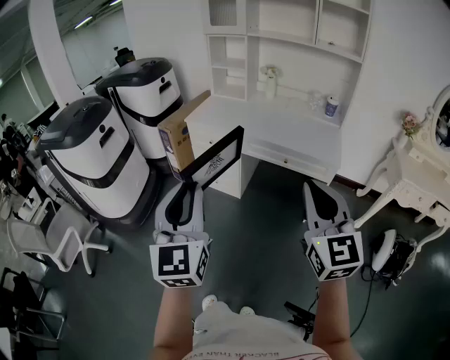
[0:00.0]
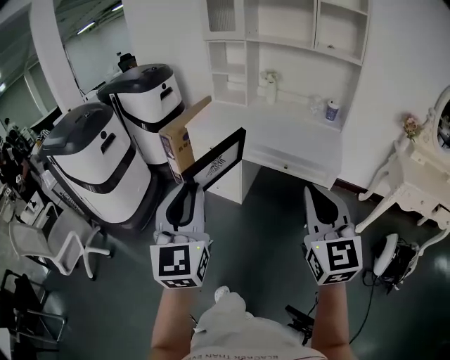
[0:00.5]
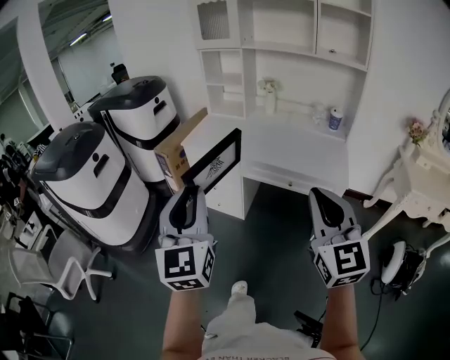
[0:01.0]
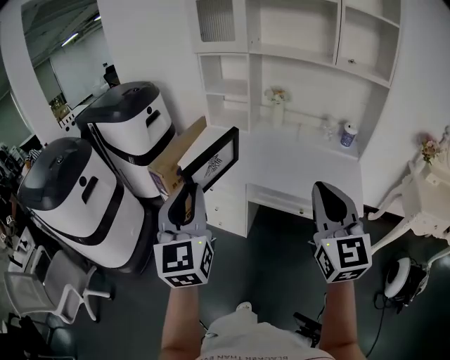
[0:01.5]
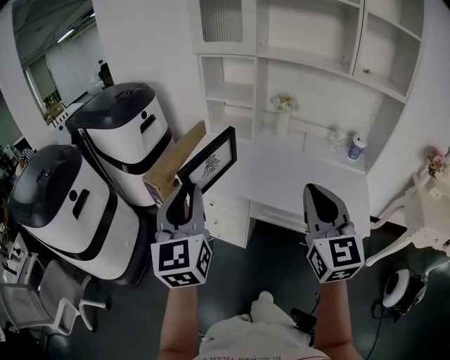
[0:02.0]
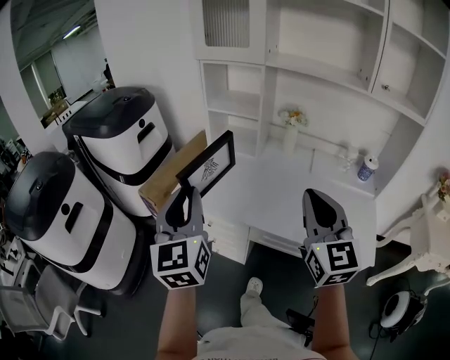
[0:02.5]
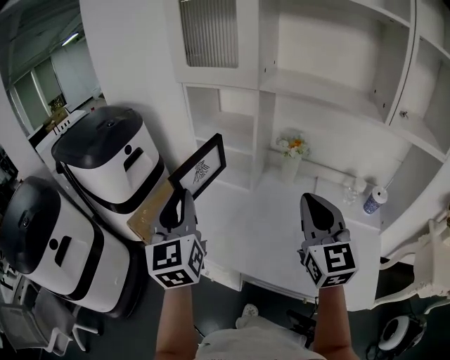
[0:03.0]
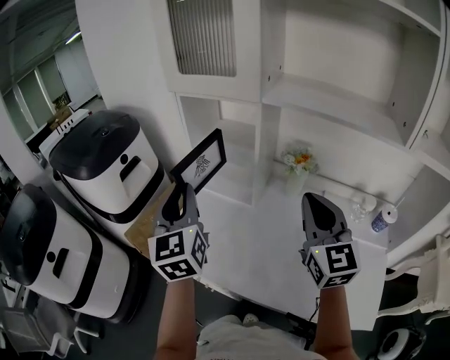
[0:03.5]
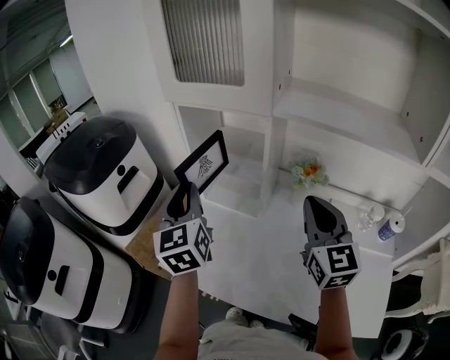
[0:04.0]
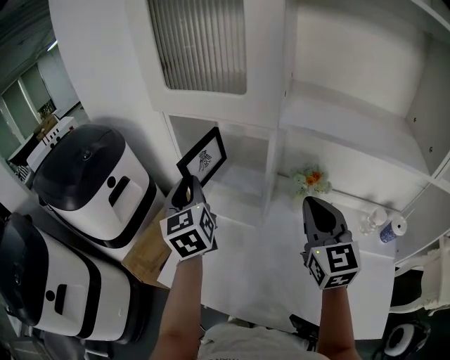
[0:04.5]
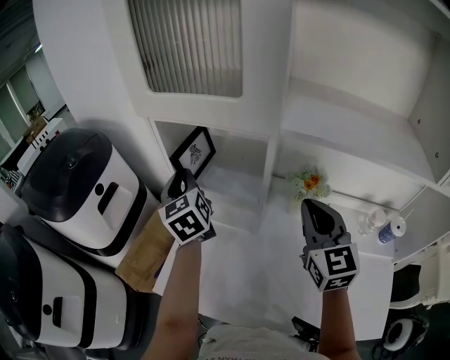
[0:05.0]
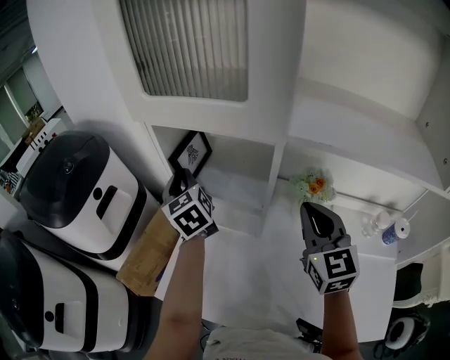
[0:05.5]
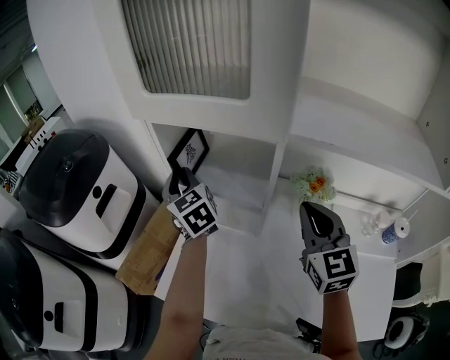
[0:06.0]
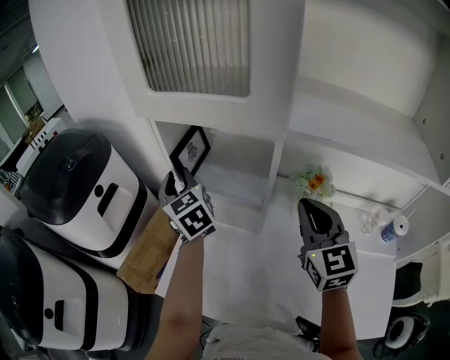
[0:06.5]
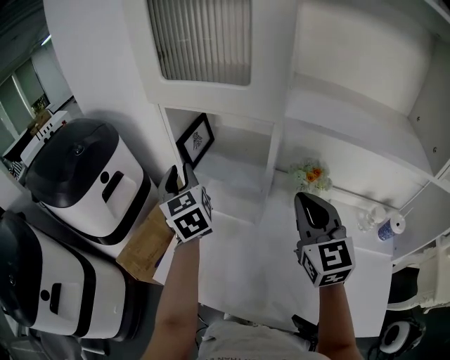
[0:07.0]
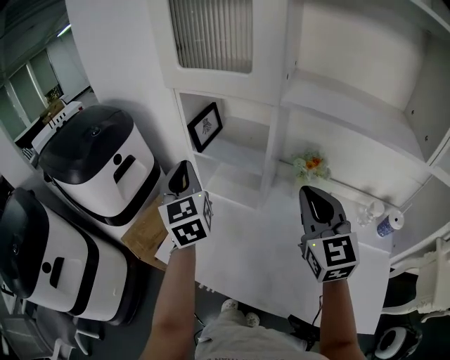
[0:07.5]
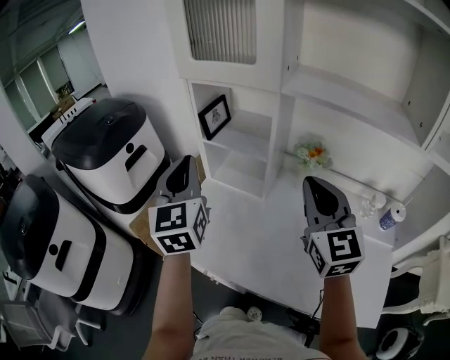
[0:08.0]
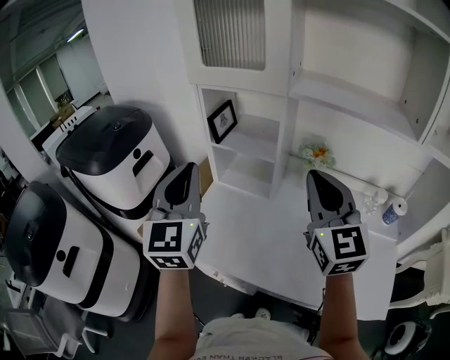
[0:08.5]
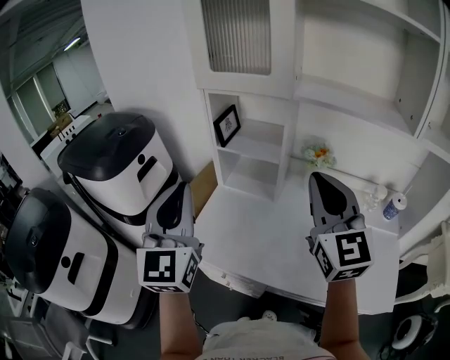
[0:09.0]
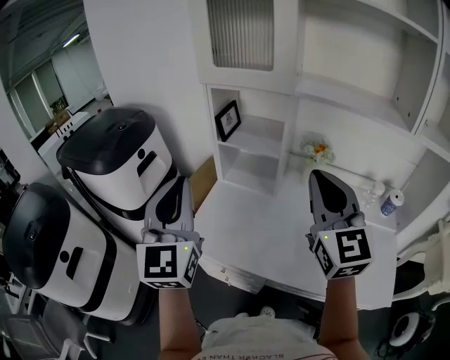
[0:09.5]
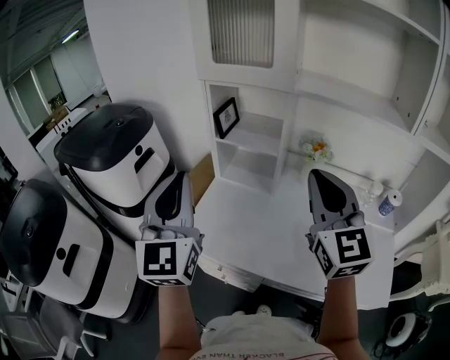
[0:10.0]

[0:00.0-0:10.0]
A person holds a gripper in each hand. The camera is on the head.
0:00.0 to 0:02.0: The pair of grippers is taken forward, approximately 40 cm.
0:02.0 to 0:04.0: The pair of grippers is taken forward, approximately 50 cm.
0:04.0 to 0:06.0: The left gripper is displaced forward by some 20 cm; the right gripper shifts approximately 10 cm forward.
0:06.0 to 0:08.0: The left gripper heads backward and upward, covering some 30 cm, and swivels approximately 20 degrees. Meanwhile the right gripper shifts roughly 15 cm backward and upward.
0:08.0 to 0:10.0: The left gripper is displaced backward and to the left by about 15 cm, while the right gripper is displaced backward, to the left and upward by approximately 10 cm.

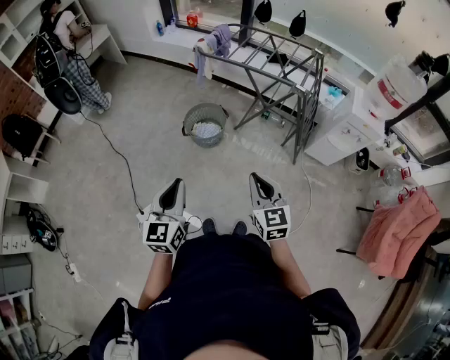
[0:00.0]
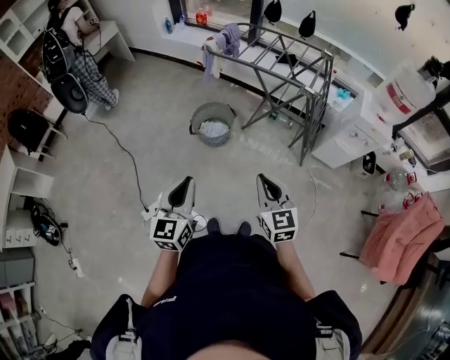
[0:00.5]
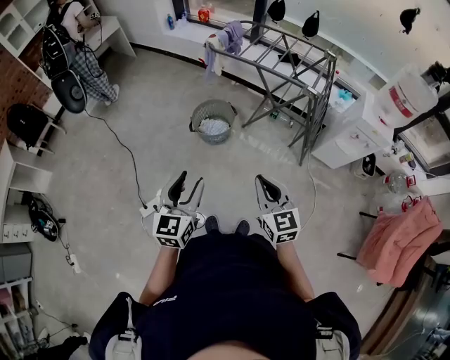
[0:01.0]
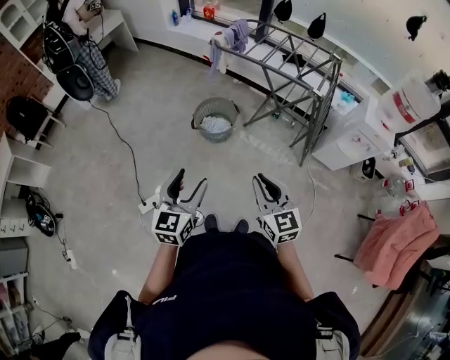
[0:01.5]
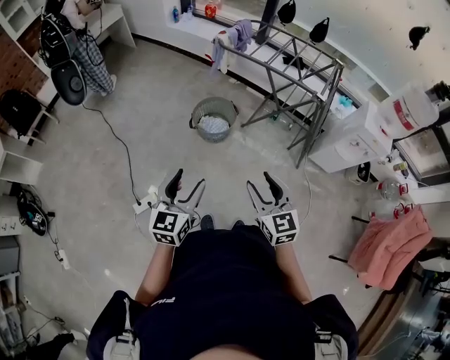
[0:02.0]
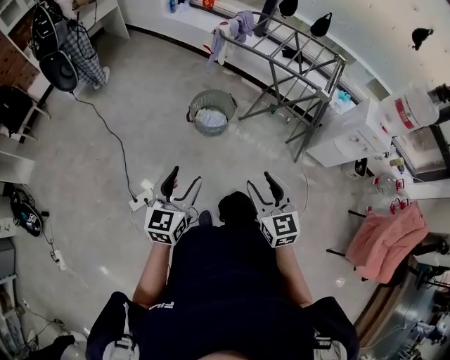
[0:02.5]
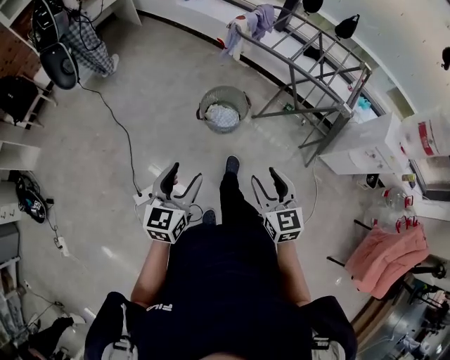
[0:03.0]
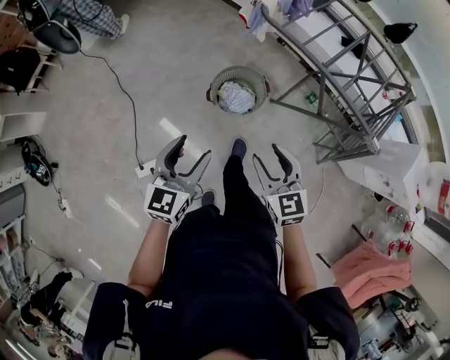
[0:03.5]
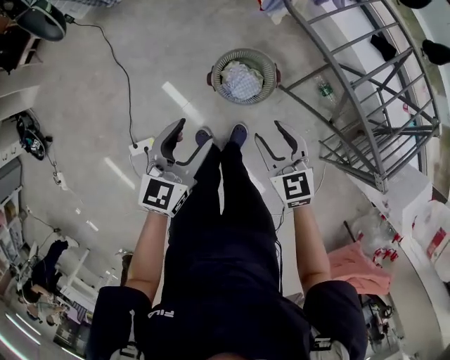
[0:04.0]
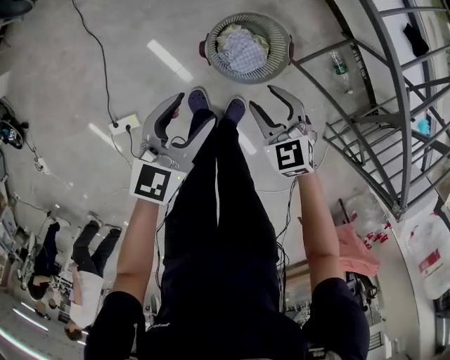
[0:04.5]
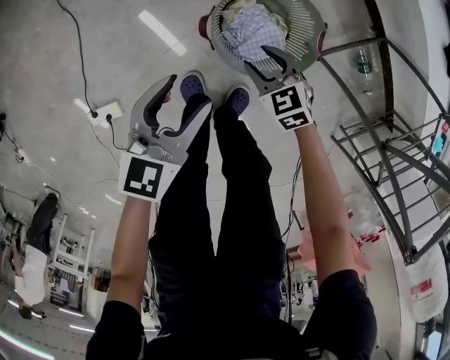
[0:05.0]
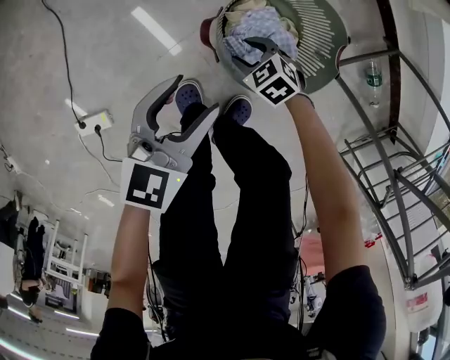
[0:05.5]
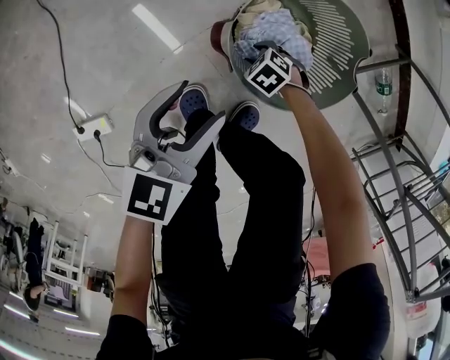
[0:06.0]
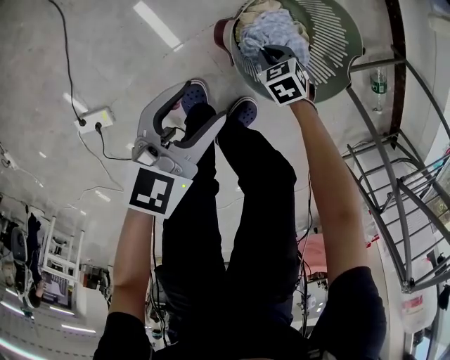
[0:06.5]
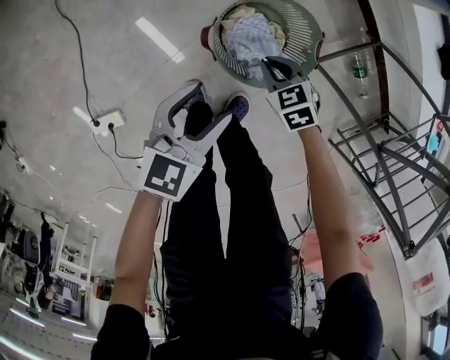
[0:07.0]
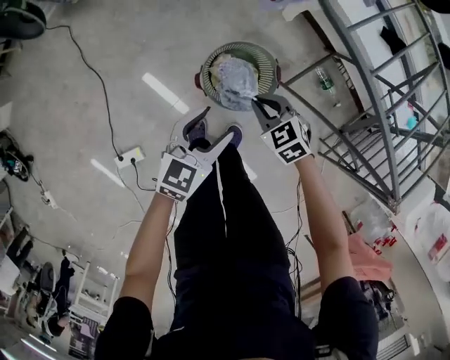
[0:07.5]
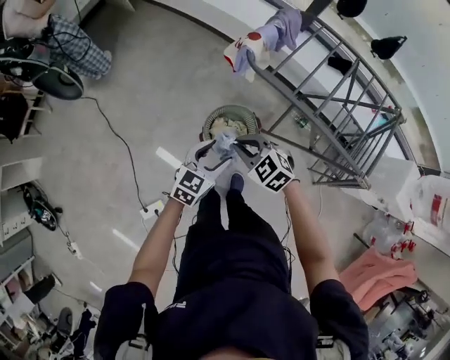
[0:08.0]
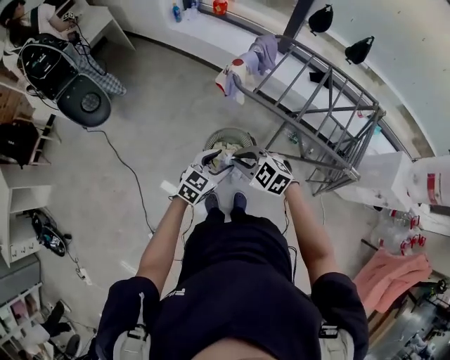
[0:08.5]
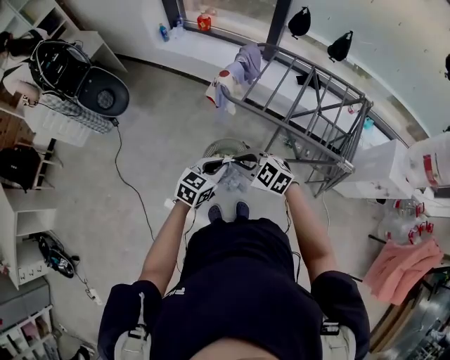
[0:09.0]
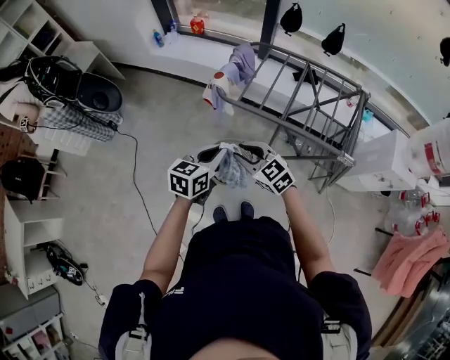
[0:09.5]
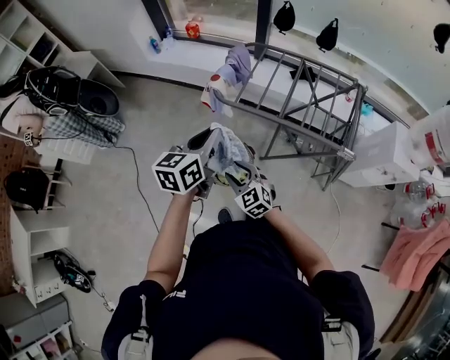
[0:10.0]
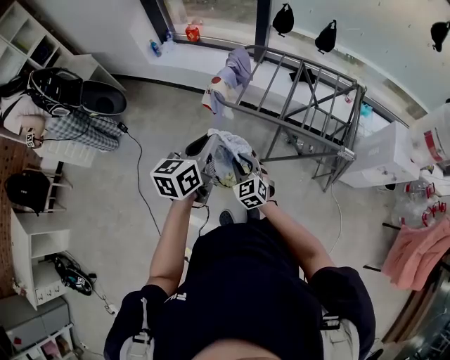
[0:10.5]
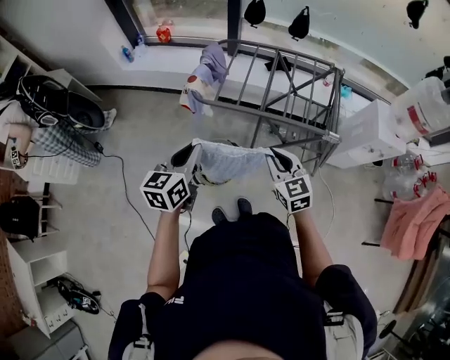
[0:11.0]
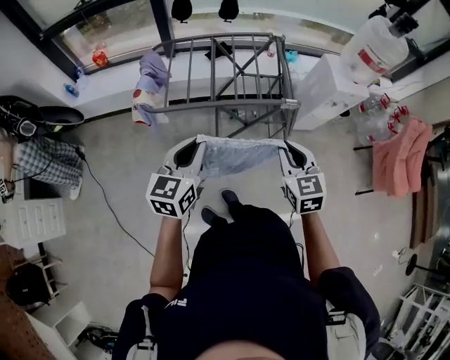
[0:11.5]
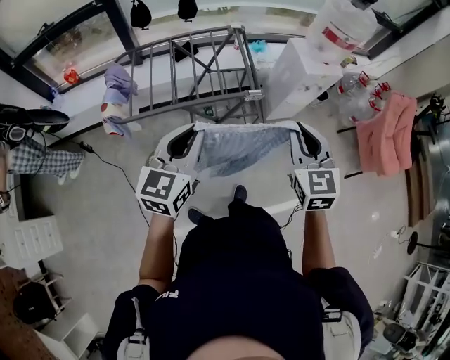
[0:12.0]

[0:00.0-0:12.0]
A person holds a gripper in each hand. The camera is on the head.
0:00.0 to 0:02.0: The left gripper changes place by about 5 cm, and opens its fingers; the right gripper travels to the left by about 5 cm, and opens up.
0:02.0 to 0:04.0: The pair of grippers is taken forward, roughly 50 cm. The right gripper is displaced downward by about 20 cm, and rotates roughly 30 degrees.
0:04.0 to 0:06.0: The grippers both shift downward by about 60 cm. The right gripper points its fingers roughly 40 degrees further downward.
0:06.0 to 0:08.0: The left gripper heads upward, covering approximately 50 cm, and swivels some 20 degrees; the right gripper goes about 80 cm upward, points its fingers some 30 degrees further upward, and closes its fingers.
0:08.0 to 0:10.0: The left gripper heads upward, covering some 25 cm, and closes up. Meanwhile the right gripper shifts approximately 5 cm backward, swivels some 30 degrees, and opens its fingers.
0:10.0 to 0:12.0: The left gripper changes place by about 25 cm, and swivels about 40 degrees. The right gripper shifts by some 50 cm, turns by some 60 degrees, and closes.

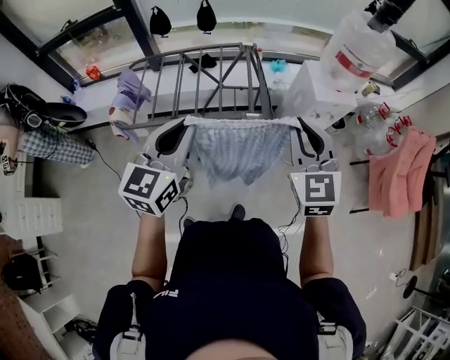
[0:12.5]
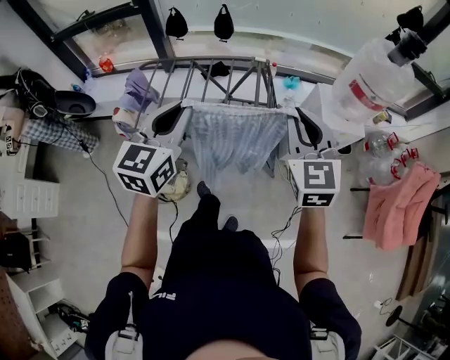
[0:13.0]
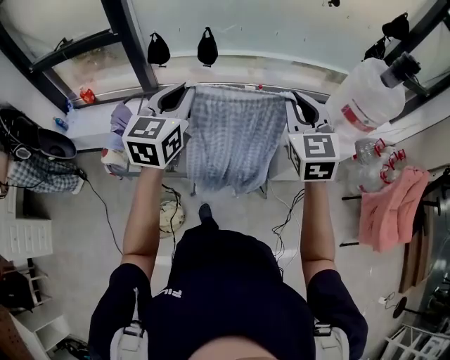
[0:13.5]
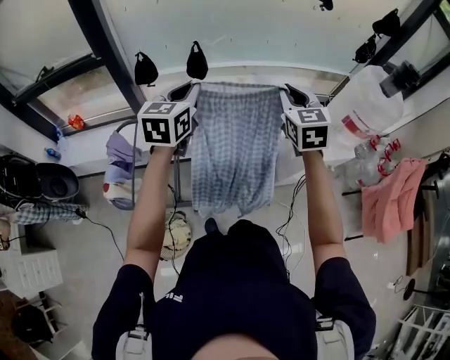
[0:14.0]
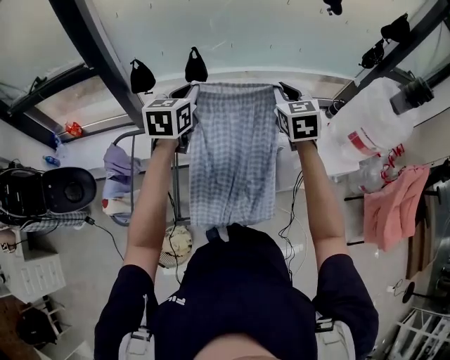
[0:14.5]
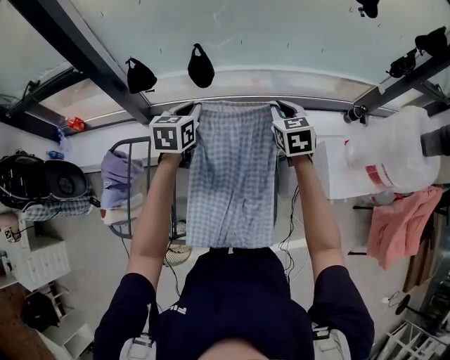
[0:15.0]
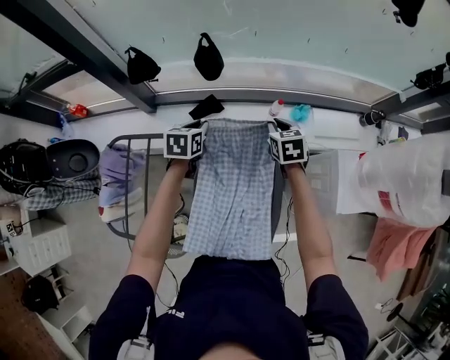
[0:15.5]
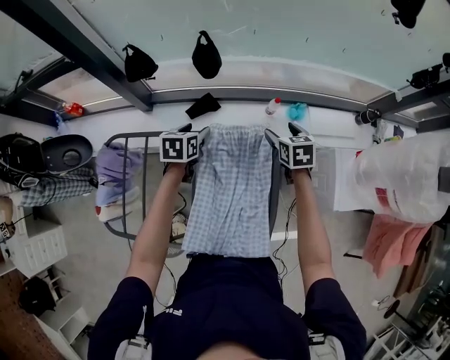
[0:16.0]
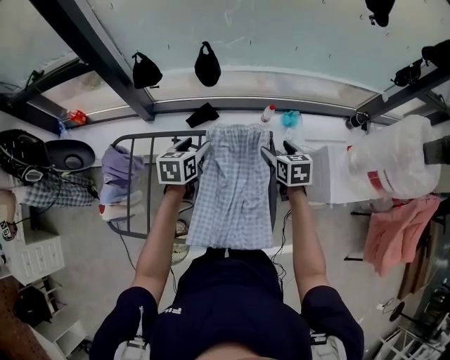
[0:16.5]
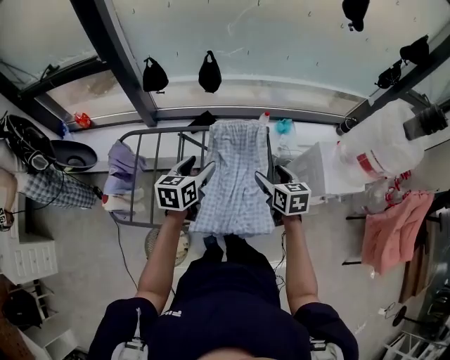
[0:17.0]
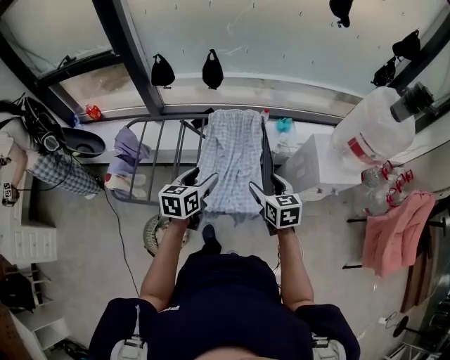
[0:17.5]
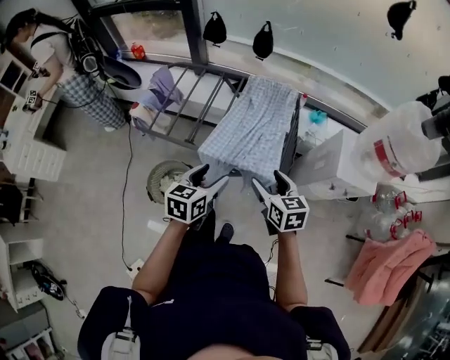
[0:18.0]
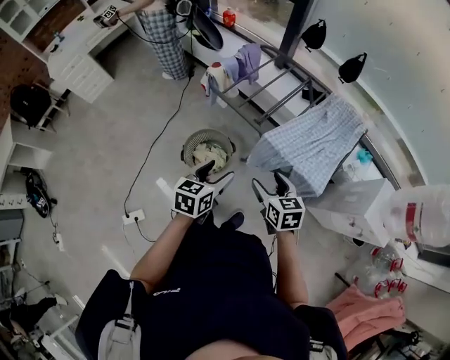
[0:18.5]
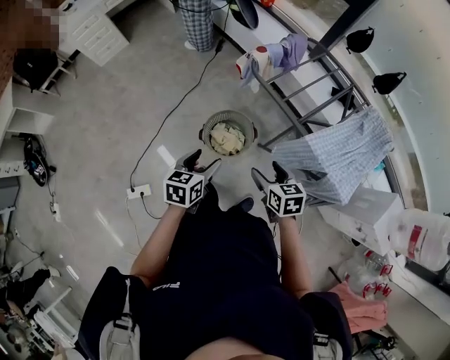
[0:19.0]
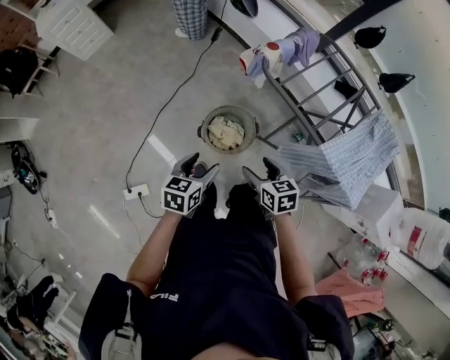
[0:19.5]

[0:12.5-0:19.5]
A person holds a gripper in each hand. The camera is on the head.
0:12.5 to 0:14.5: The pair of grippers is taken forward, about 50 cm.
0:14.5 to 0:16.0: Both grippers travel together downward, about 30 cm. The left gripper swivels roughly 30 degrees, and opens its fingers, while the right gripper rotates about 30 degrees, and opens.
0:16.0 to 0:17.5: The two grippers go roughly 35 cm backward.
0:17.5 to 0:19.5: Both grippers are carried approximately 60 cm. The right gripper rotates approximately 50 degrees, while the left gripper rotates roughly 40 degrees.
